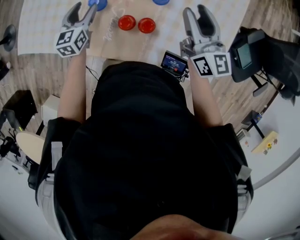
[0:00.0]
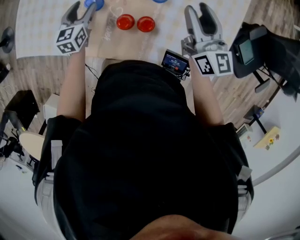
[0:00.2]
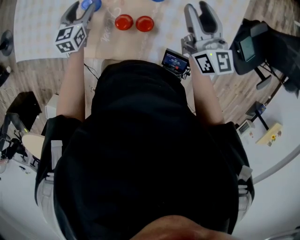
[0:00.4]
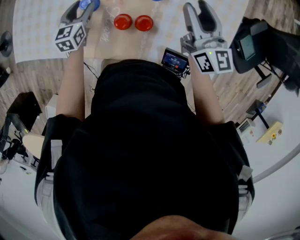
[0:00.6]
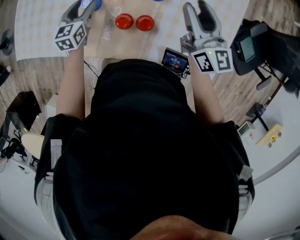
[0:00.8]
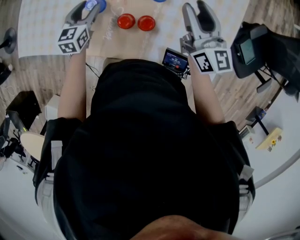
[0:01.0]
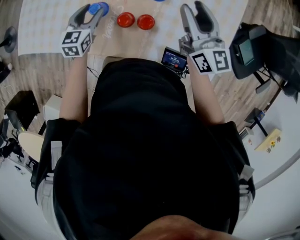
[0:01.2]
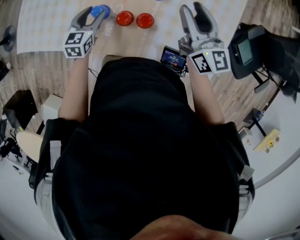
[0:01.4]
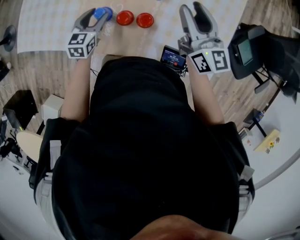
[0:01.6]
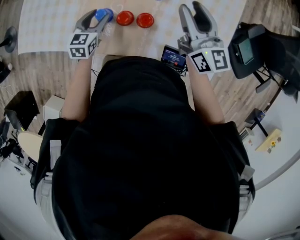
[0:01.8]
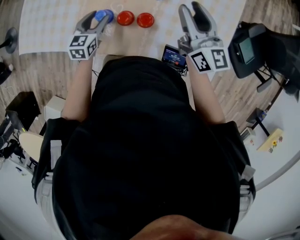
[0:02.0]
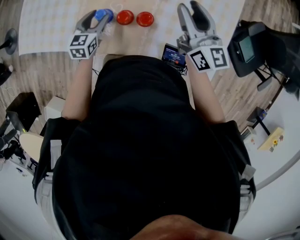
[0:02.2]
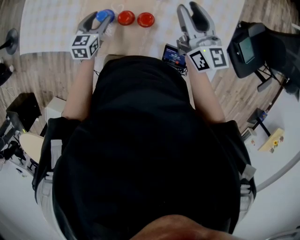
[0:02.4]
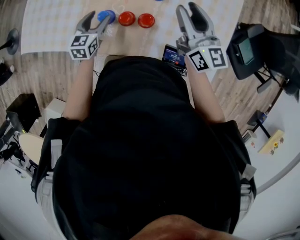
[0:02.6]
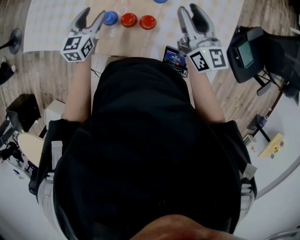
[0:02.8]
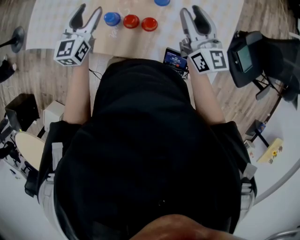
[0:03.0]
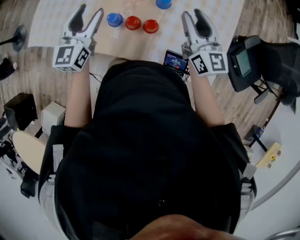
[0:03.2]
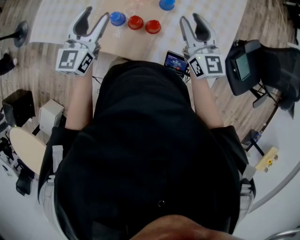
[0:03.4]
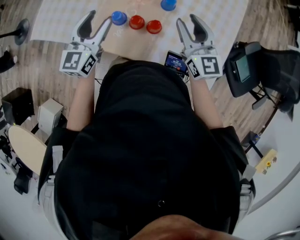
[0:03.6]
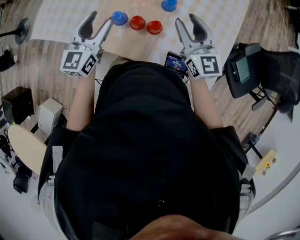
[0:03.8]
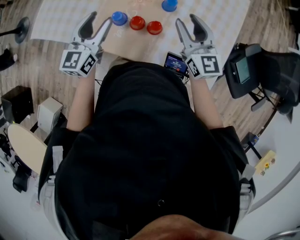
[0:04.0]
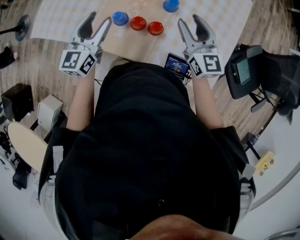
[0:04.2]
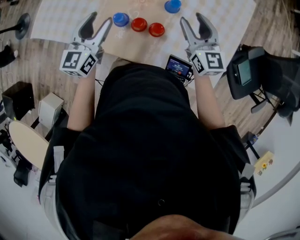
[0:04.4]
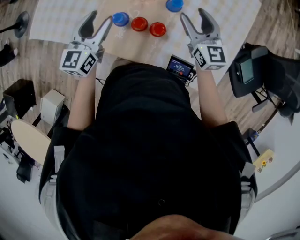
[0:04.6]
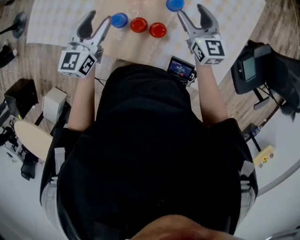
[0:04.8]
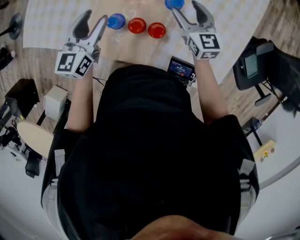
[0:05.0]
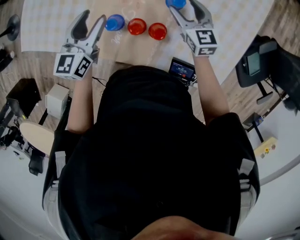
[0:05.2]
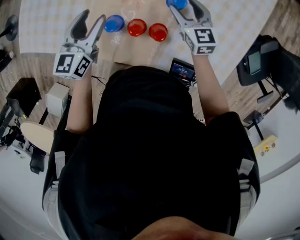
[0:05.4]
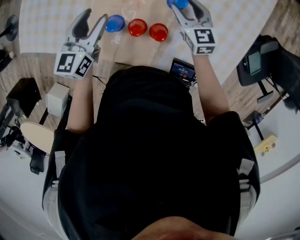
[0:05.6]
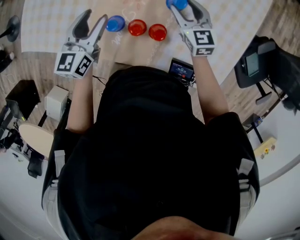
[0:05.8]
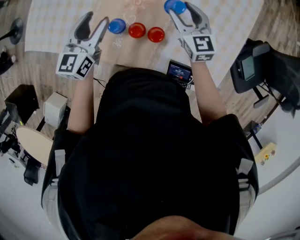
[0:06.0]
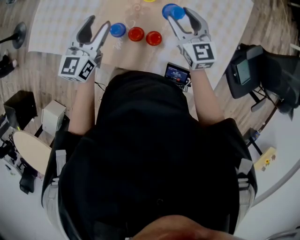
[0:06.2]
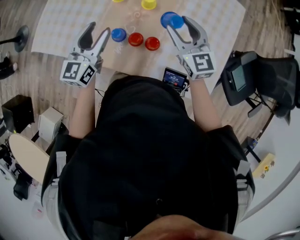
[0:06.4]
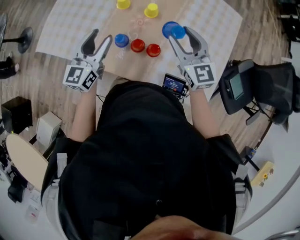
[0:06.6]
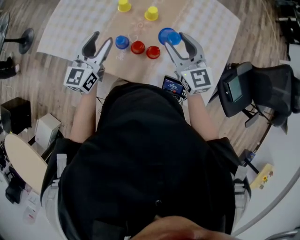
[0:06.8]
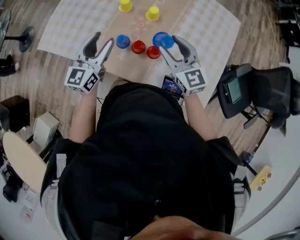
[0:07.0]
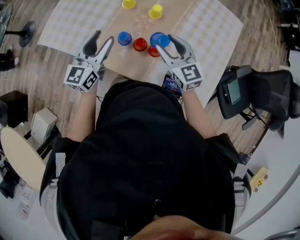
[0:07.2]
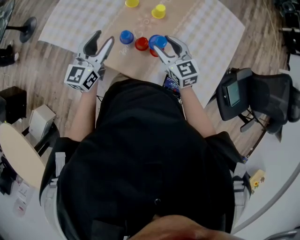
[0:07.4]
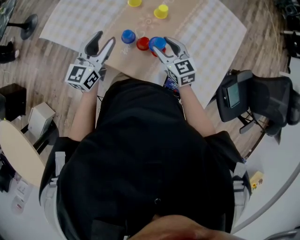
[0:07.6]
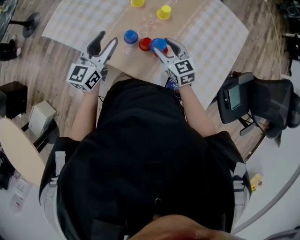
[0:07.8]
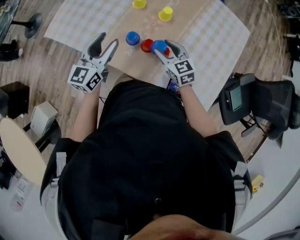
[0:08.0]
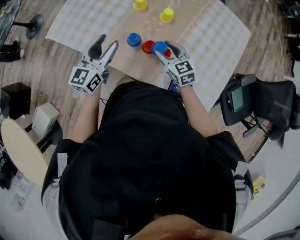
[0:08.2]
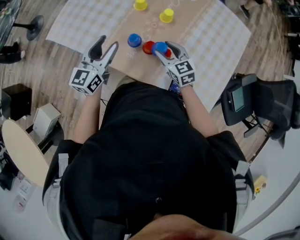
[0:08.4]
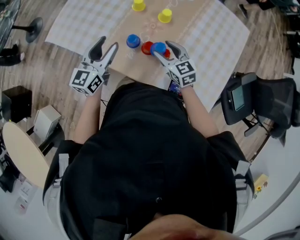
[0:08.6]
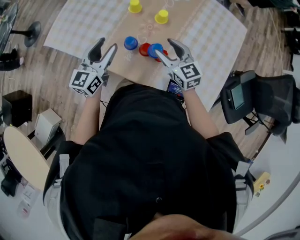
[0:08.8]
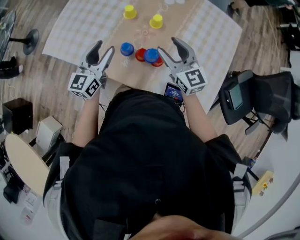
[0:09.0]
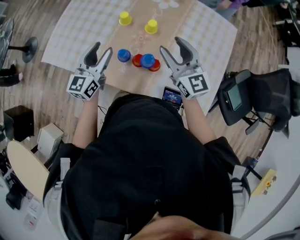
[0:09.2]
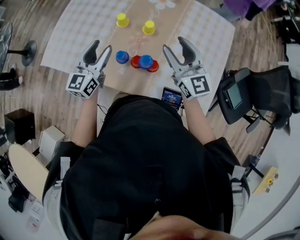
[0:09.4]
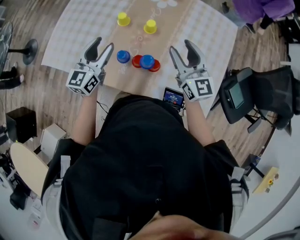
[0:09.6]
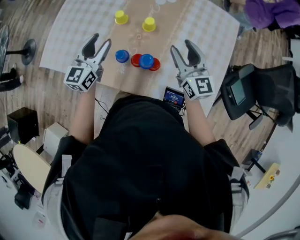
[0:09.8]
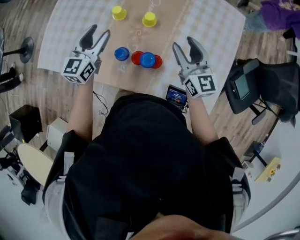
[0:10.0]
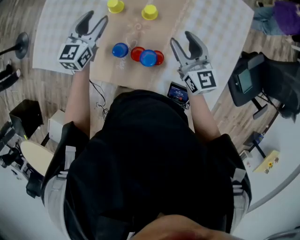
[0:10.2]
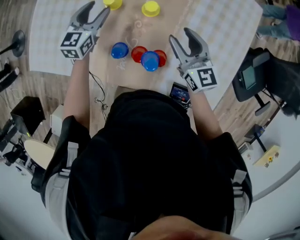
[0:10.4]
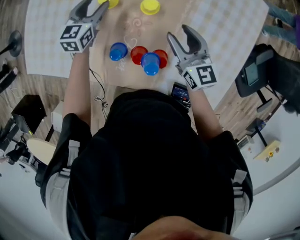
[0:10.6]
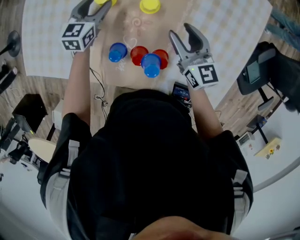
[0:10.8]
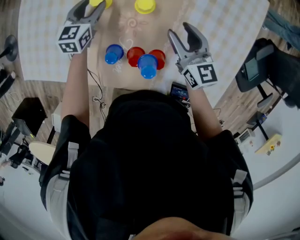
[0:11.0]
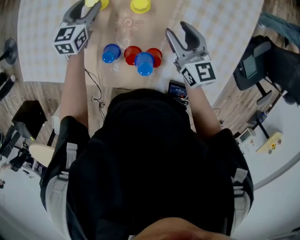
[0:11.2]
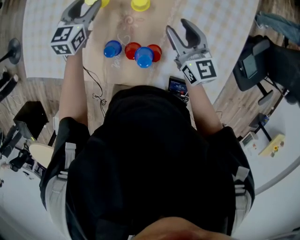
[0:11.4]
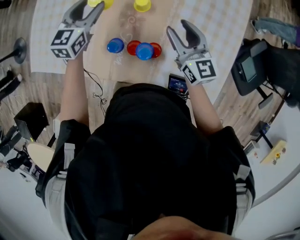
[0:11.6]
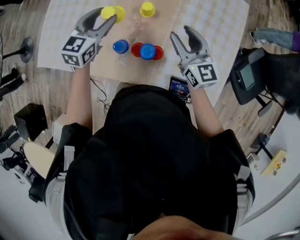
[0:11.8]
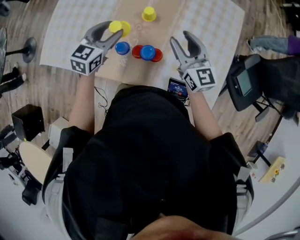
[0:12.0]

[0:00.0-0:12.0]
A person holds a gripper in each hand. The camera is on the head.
0.0 to 1.6 s: The left gripper goes about 5 cm backward.
1.6 to 3.0 s: The left gripper moves upward, about 15 cm, and turns by approximately 20 degrees.
3.0 to 4.4 s: The right gripper ends up some 5 cm from where it was.
4.4 to 6.0 s: The right gripper is displaced forward and downward by approximately 10 cm; the left gripper moves forward, roughly 5 cm.
6.0 to 7.6 s: The right gripper moves backward and to the left, roughly 15 cm, and reaches approximately 15 cm upward, then returns, while the left gripper travels backward and upward by some 10 cm.
7.6 to 9.0 s: The right gripper is displaced upward by approximately 10 cm.
9.0 to 10.4 s: The left gripper goes about 25 cm forward and downward, and changes its angle by about 20 degrees. The right gripper is displaced forward, downward and to the right by some 15 cm.
10.4 to 12.0 s: The right gripper heads upward and backward, covering roughly 10 cm. Meanwhile the left gripper travels backward and upward by approximately 15 cm.

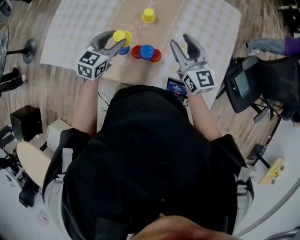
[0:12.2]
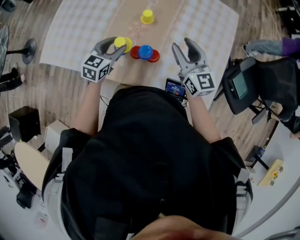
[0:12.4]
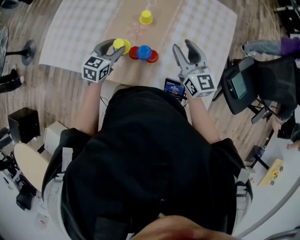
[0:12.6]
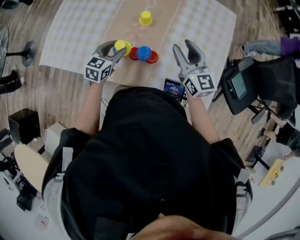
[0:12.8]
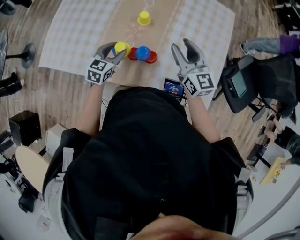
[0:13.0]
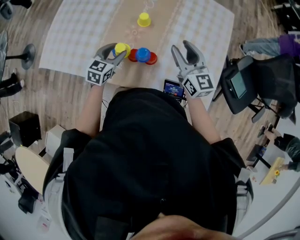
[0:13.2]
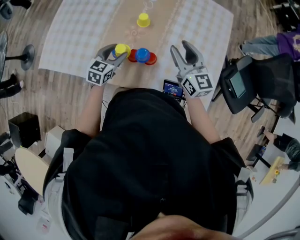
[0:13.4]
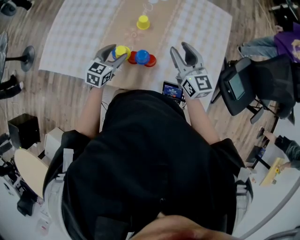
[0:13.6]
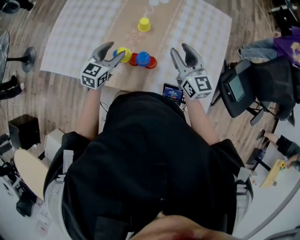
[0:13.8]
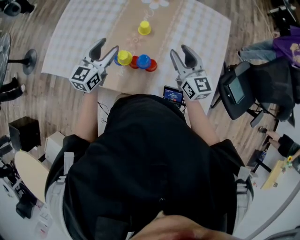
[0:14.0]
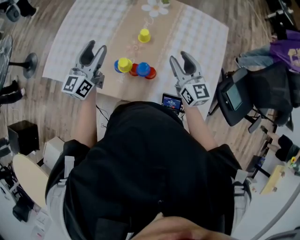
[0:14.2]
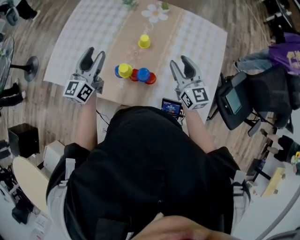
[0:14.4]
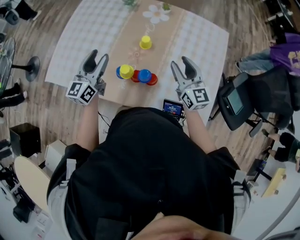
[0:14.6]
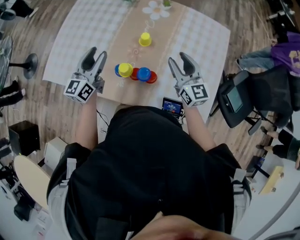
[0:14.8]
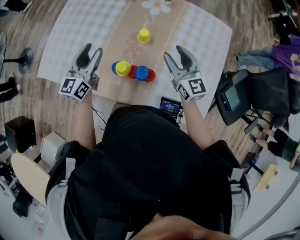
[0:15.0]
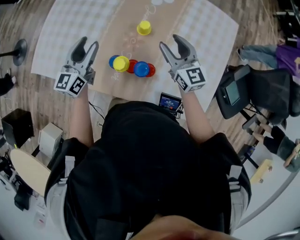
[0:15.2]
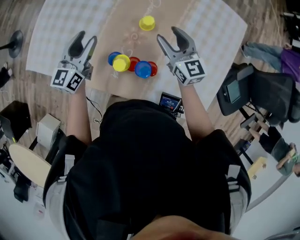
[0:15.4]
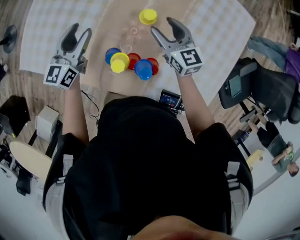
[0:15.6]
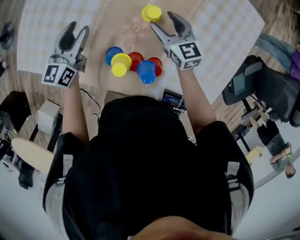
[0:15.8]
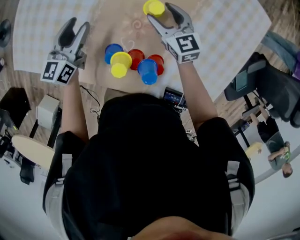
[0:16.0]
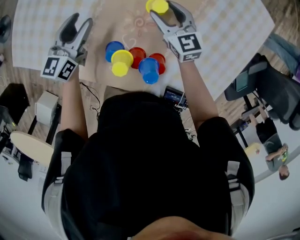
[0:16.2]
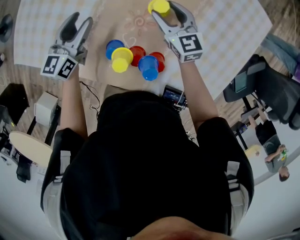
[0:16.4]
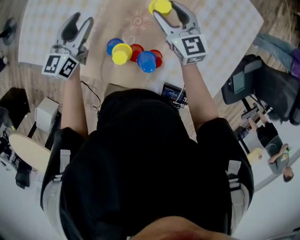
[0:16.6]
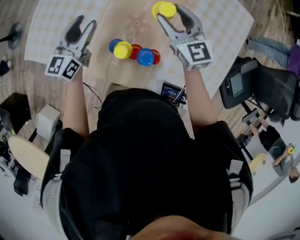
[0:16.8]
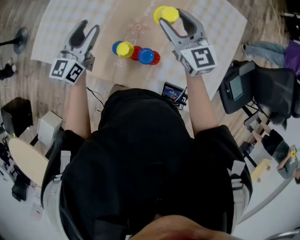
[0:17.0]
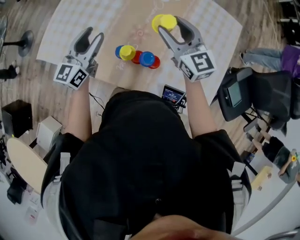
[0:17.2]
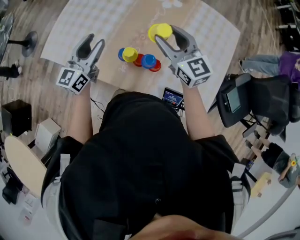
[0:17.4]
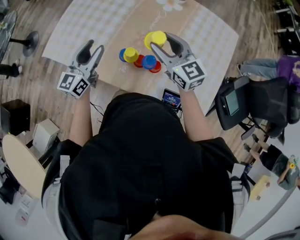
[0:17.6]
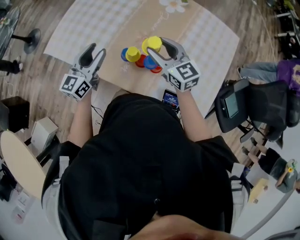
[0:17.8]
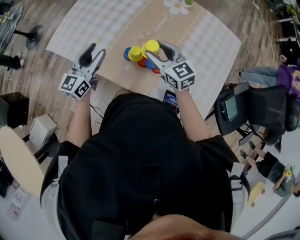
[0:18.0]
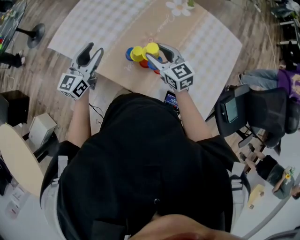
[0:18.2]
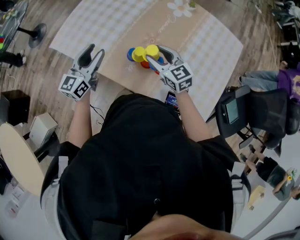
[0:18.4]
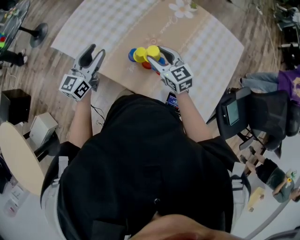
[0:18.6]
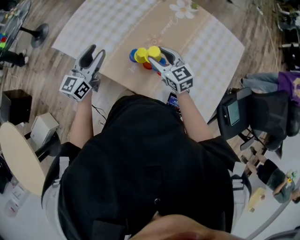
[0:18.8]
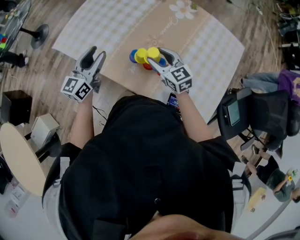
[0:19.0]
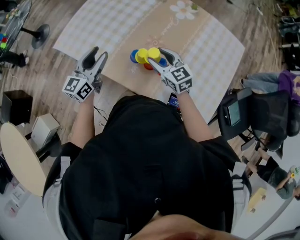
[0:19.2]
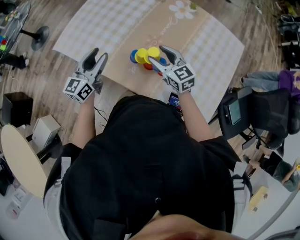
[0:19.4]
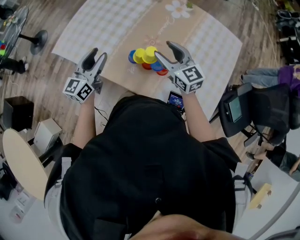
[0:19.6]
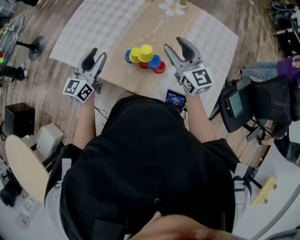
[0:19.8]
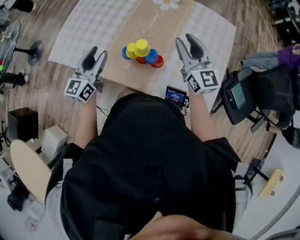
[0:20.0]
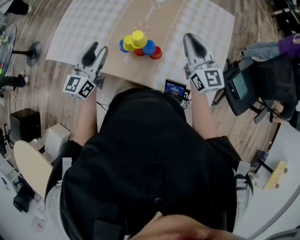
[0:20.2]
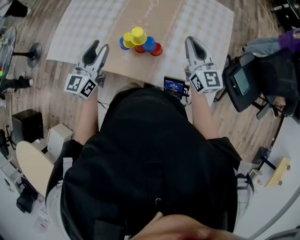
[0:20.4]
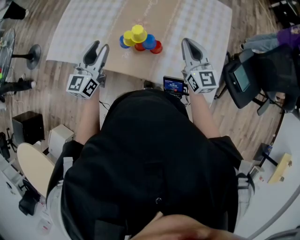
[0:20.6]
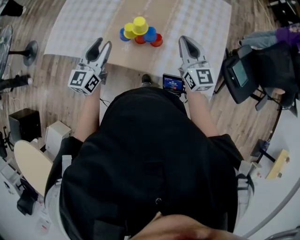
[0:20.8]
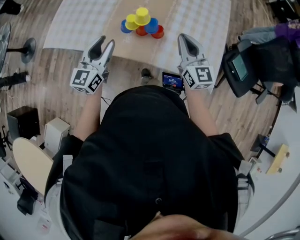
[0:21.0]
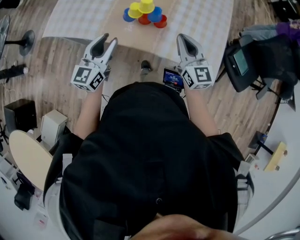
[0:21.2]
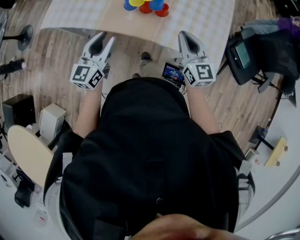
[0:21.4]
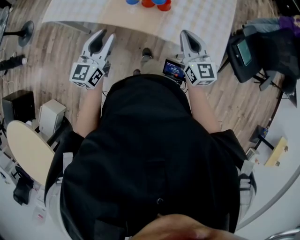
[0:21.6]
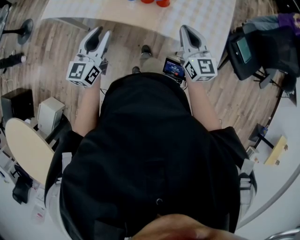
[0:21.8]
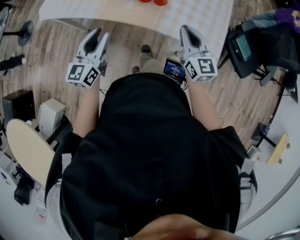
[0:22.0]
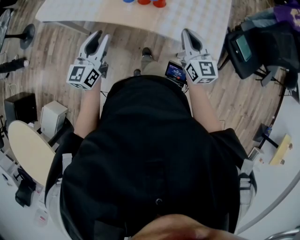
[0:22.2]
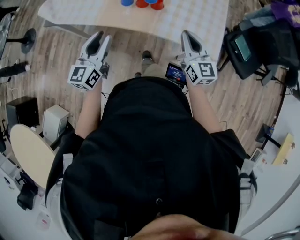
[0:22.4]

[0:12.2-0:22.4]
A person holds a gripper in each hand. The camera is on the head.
12.2 to 13.6 s: The left gripper travels downward by about 5 cm.
13.6 to 15.2 s: The left gripper shifts about 15 cm to the left, upward and forward, and swivels approximately 30 degrees. The right gripper moves forward and to the left, about 15 cm.
15.2 to 16.6 s: The grippers both shift downward and forward by some 10 cm.
16.6 to 18.0 s: The right gripper heads backward, upward and to the left, covering roughly 20 cm. Meanwhile the left gripper heads backward and upward, covering approximately 20 cm.
18.0 to 19.4 s: The grippers move only a little.
19.4 to 21.0 s: The left gripper shifts about 10 cm backward and to the right, while the right gripper moves backward, to the right and upward, approximately 20 cm, swivels about 40 degrees, and closes its fingers.
21.0 to 22.4 s: The two grippers go approximately 15 cm backward.

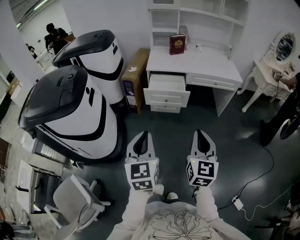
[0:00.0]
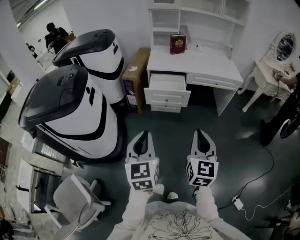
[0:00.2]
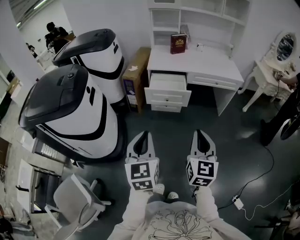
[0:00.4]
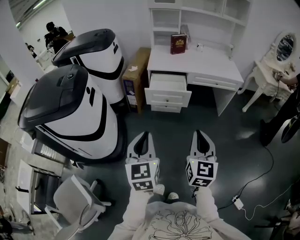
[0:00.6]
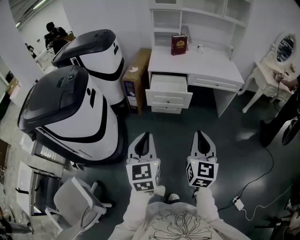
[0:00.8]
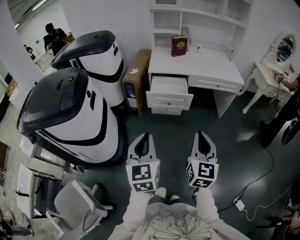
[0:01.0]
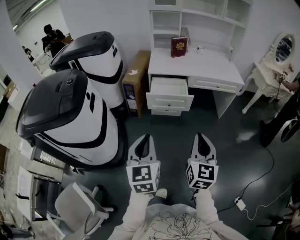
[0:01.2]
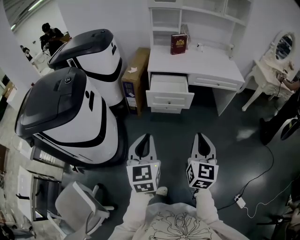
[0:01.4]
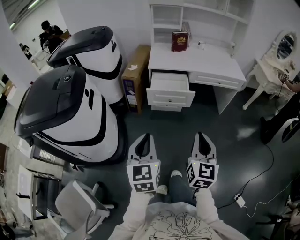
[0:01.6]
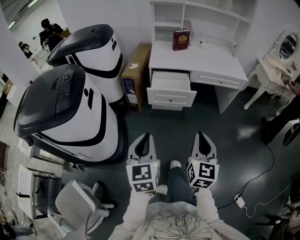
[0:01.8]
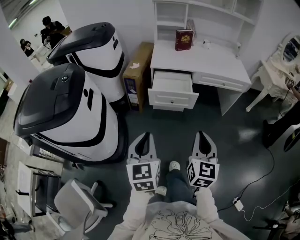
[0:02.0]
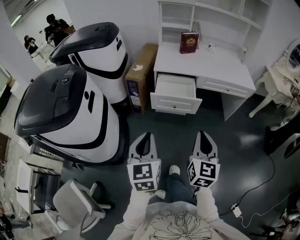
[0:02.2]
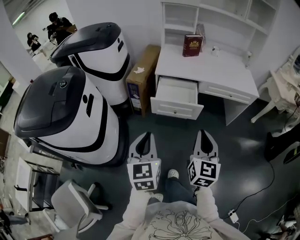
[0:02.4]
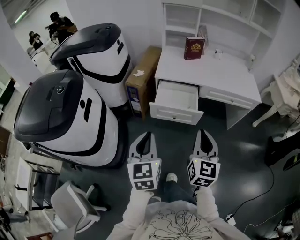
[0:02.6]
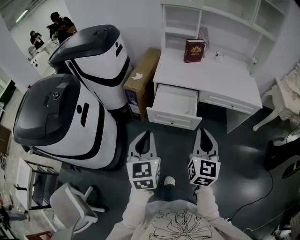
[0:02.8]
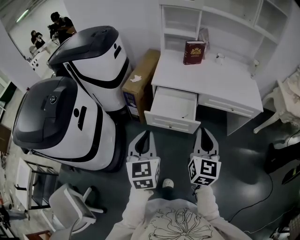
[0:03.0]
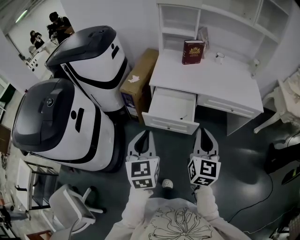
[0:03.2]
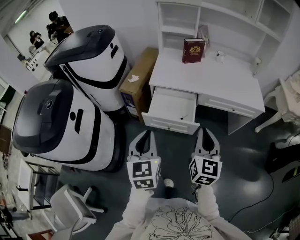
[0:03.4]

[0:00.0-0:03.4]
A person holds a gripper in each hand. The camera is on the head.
0.0 to 1.6 s: The left gripper ends up about 10 cm from where it was. The right gripper changes place by some 5 cm.
1.6 to 3.4 s: The two grippers go roughly 30 cm forward.
